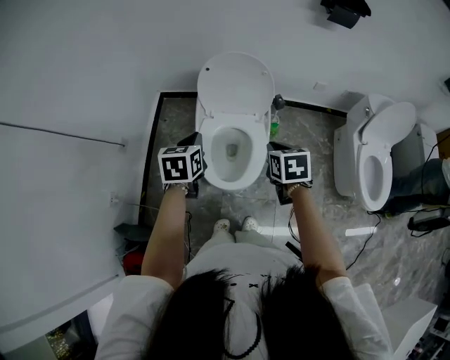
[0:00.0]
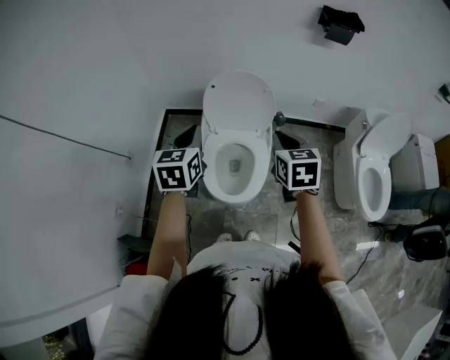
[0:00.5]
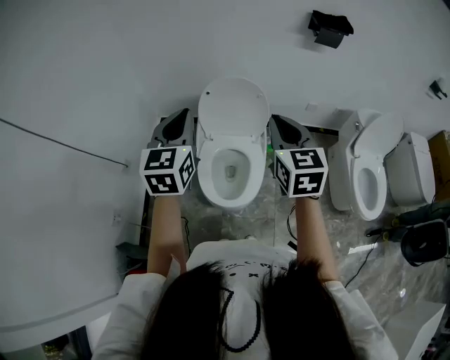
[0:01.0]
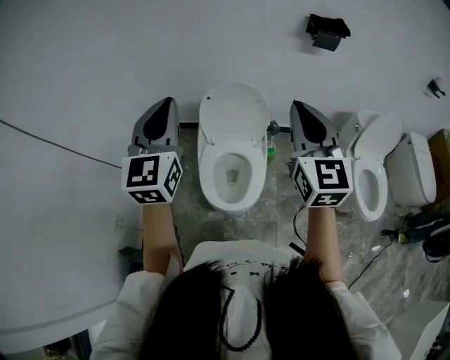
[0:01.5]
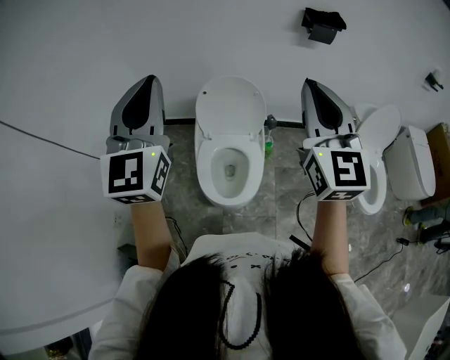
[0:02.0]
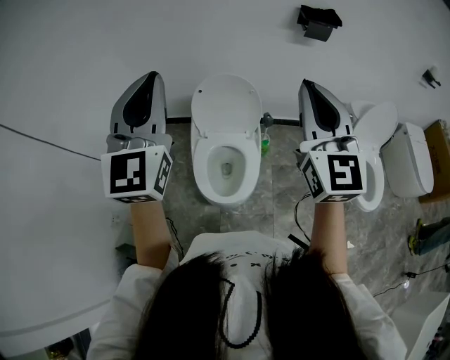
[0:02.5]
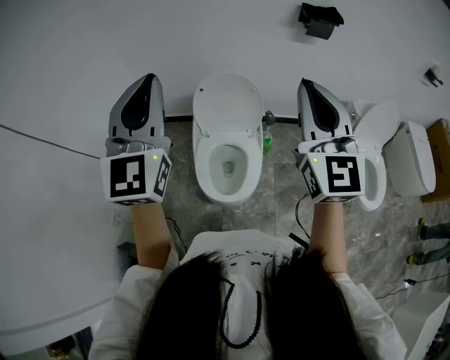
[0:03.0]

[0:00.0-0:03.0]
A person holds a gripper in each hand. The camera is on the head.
0:00.0 to 0:01.5: Both grippers move upward, some 30 cm. The right gripper angles its fingers upward, by roughly 50 degrees. Meanwhile the left gripper points its fingers about 50 degrees further upward.
0:01.5 to 0:03.0: The grippers both shift upward by some 5 cm.

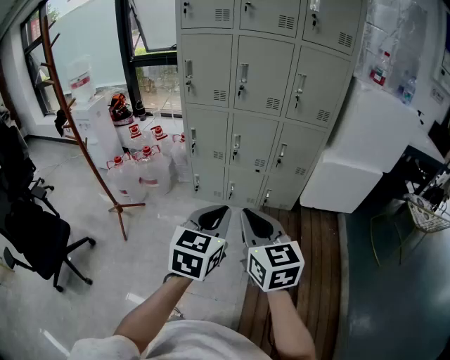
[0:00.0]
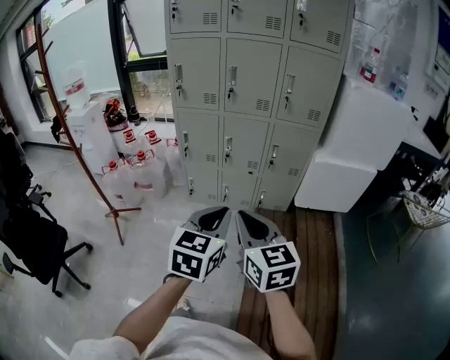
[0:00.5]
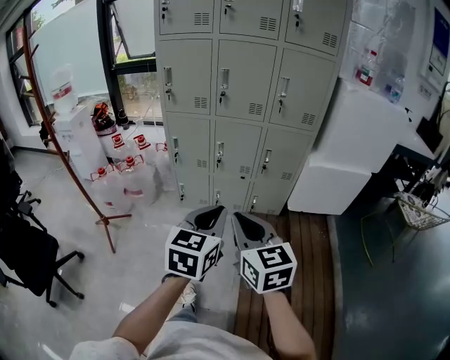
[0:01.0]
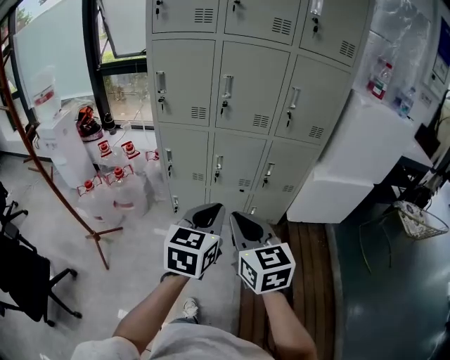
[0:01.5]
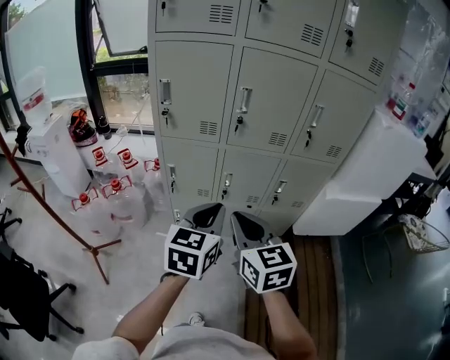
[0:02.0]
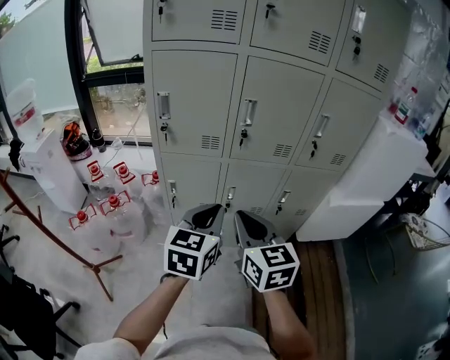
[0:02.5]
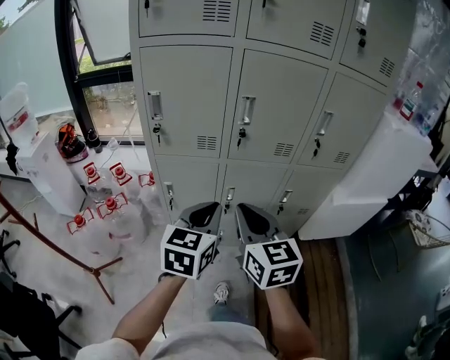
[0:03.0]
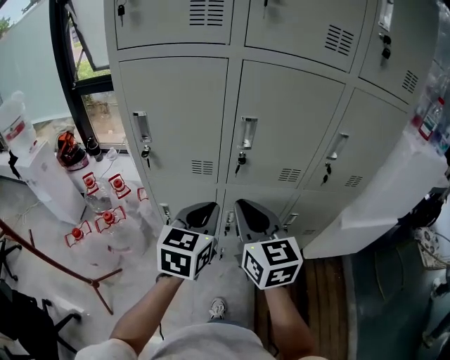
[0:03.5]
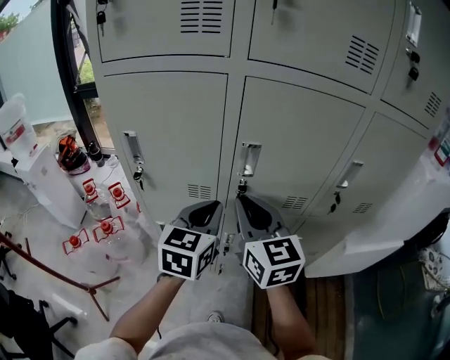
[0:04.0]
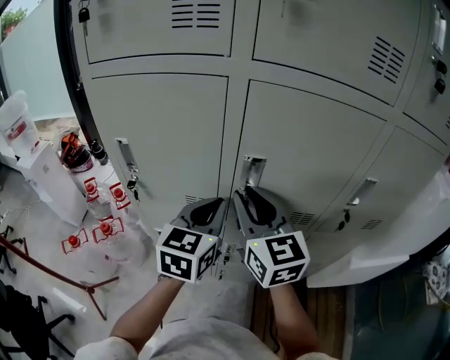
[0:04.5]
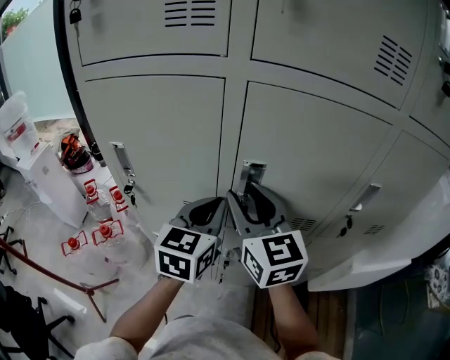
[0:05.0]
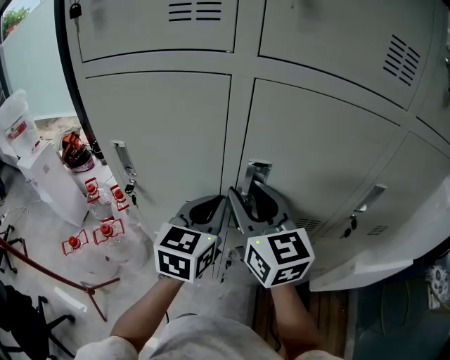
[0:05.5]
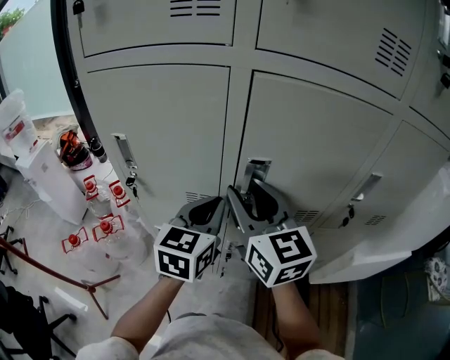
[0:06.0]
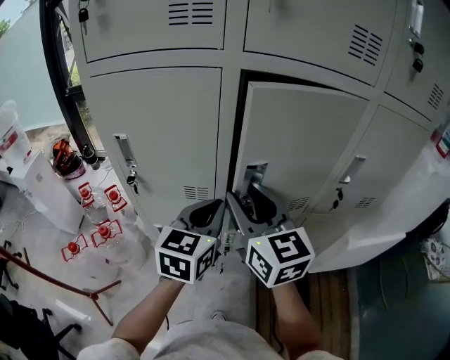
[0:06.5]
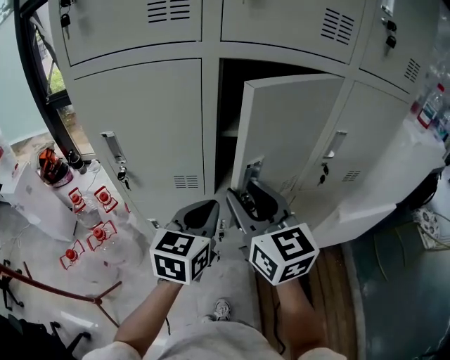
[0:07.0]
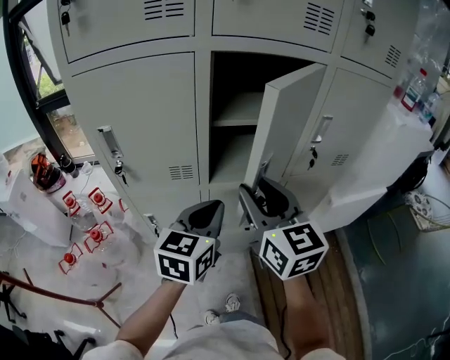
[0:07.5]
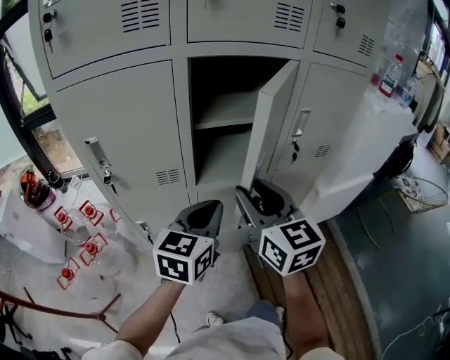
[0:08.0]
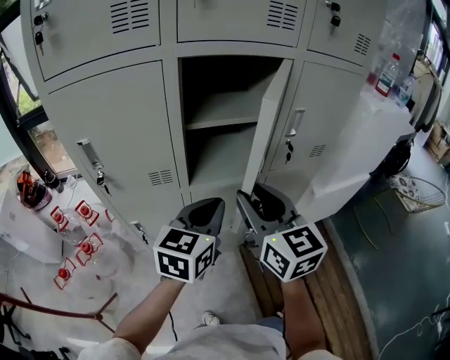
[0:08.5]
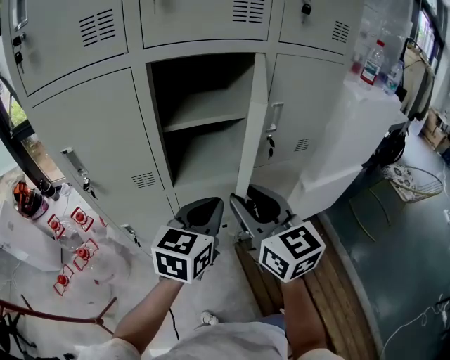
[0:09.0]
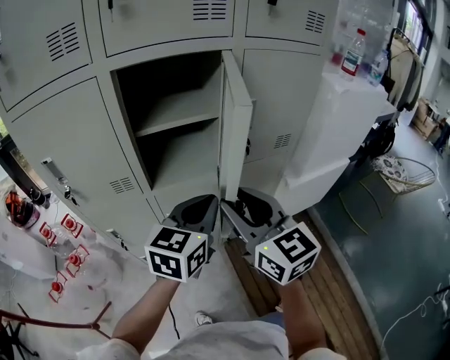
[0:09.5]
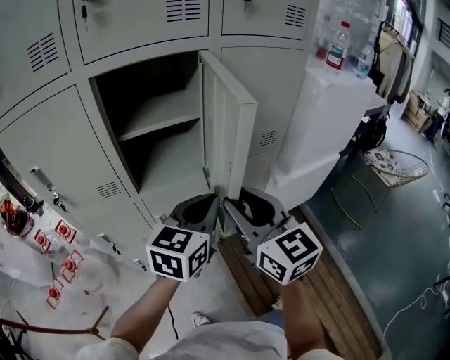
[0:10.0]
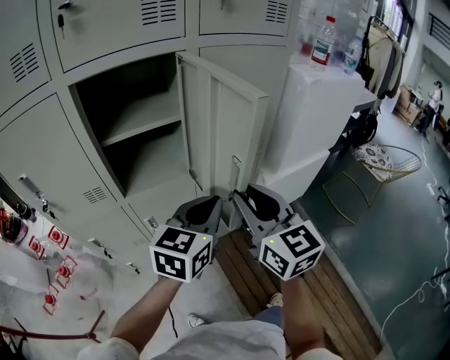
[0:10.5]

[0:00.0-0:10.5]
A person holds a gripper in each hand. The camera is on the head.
0:00.0 to 0:02.0: The two grippers go about 30 cm forward.
0:02.0 to 0:04.0: The two grippers go roughly 30 cm forward.
0:04.0 to 0:06.5: The right gripper travels forward and back again, approximately 10 cm each way, and opens up. The left gripper reaches approximately 10 cm forward, then returns.
0:06.5 to 0:08.5: The right gripper travels to the right and backward by about 15 cm. The left gripper goes roughly 10 cm backward and to the right.
0:08.5 to 0:10.5: Both grippers travel together to the right, approximately 20 cm.

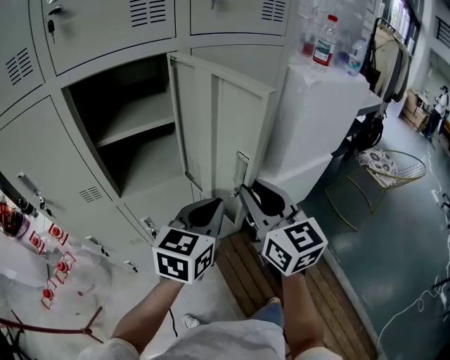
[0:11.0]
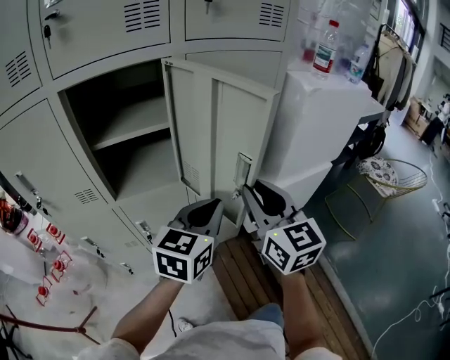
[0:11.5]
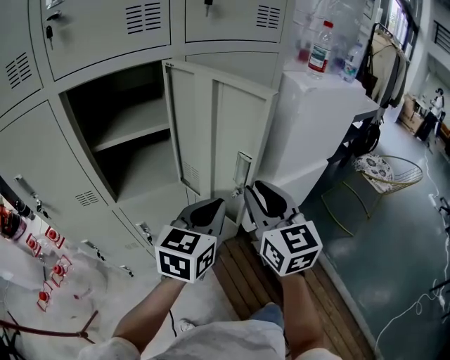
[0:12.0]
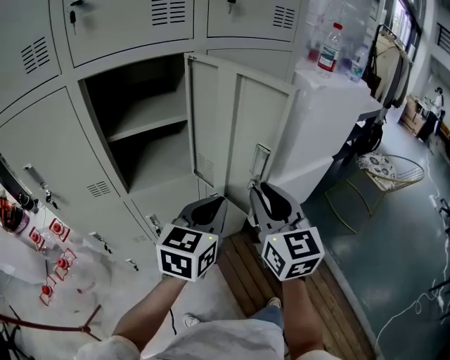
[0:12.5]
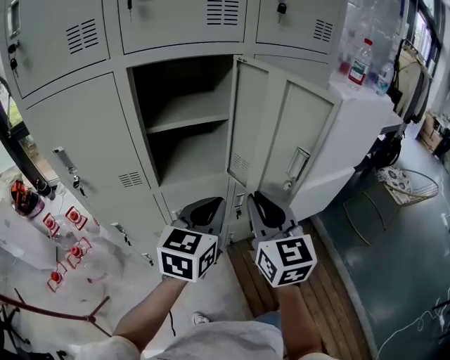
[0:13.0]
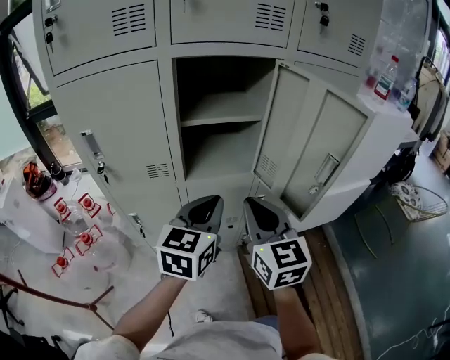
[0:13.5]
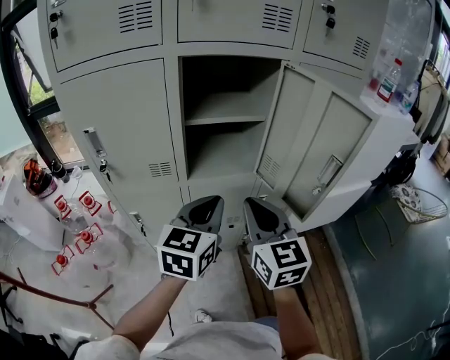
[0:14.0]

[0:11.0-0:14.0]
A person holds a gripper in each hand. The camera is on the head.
0:11.0 to 0:12.5: There are only small adjustments of the grippers.
0:12.5 to 0:14.0: The two grippers go about 20 cm to the left.

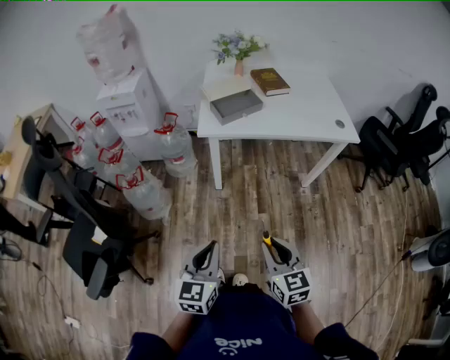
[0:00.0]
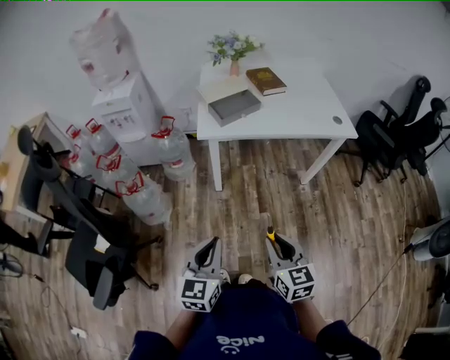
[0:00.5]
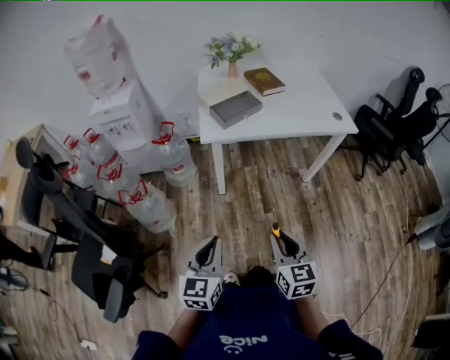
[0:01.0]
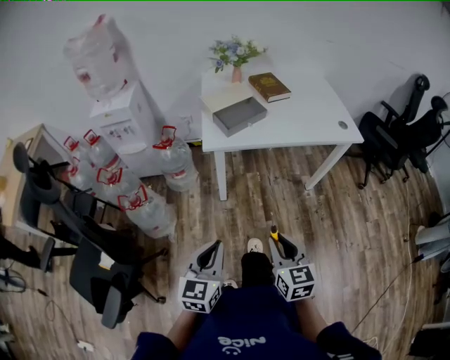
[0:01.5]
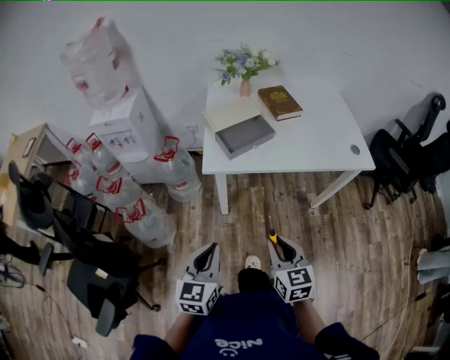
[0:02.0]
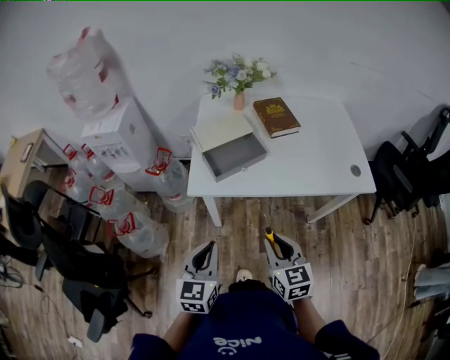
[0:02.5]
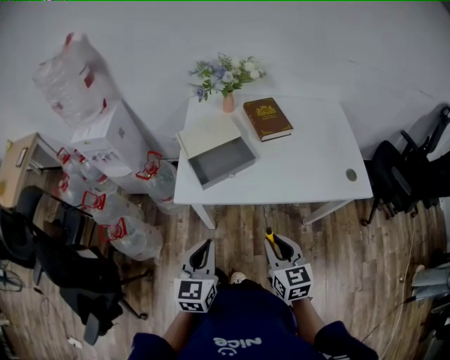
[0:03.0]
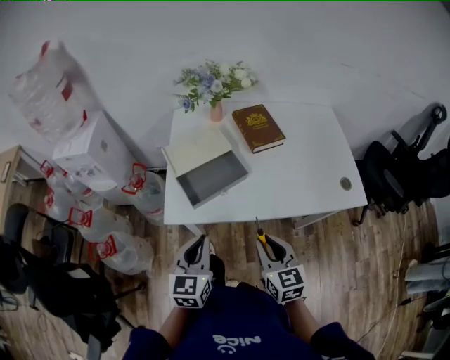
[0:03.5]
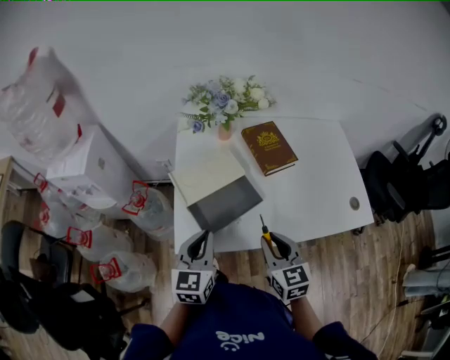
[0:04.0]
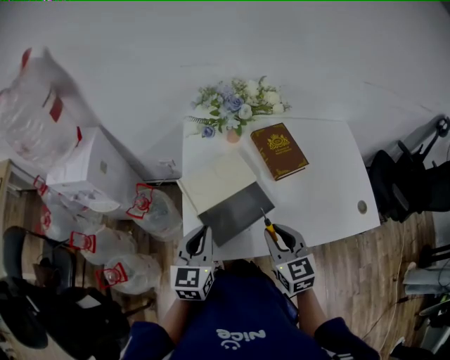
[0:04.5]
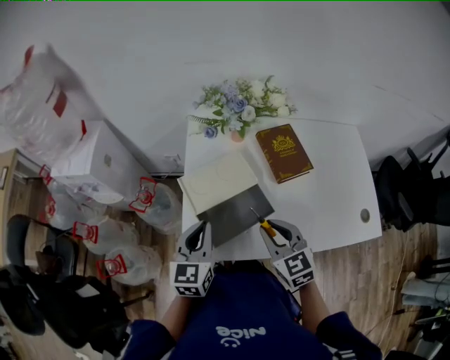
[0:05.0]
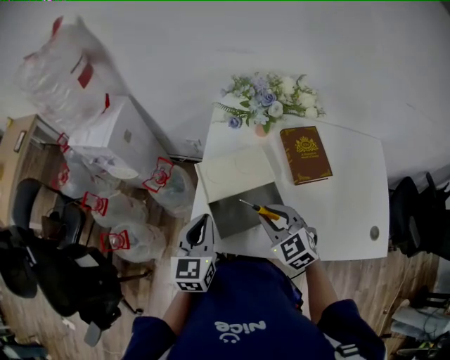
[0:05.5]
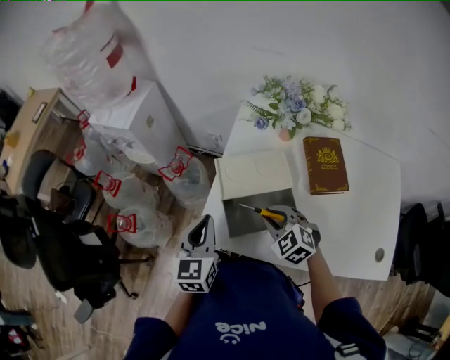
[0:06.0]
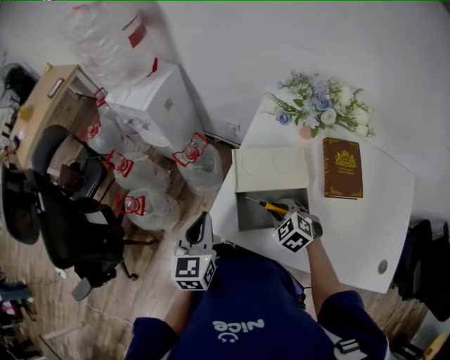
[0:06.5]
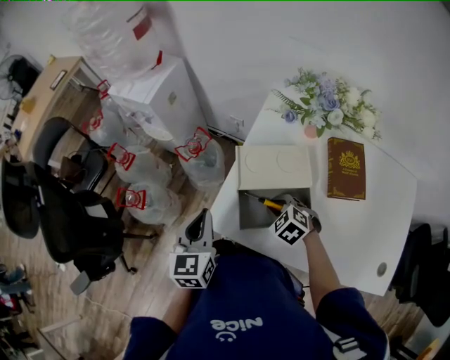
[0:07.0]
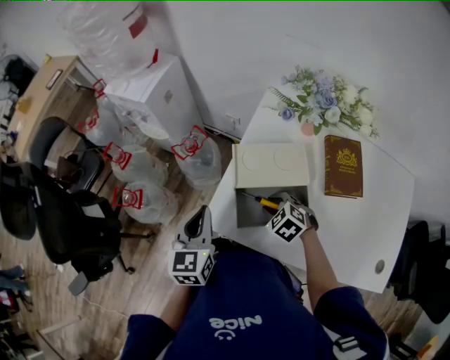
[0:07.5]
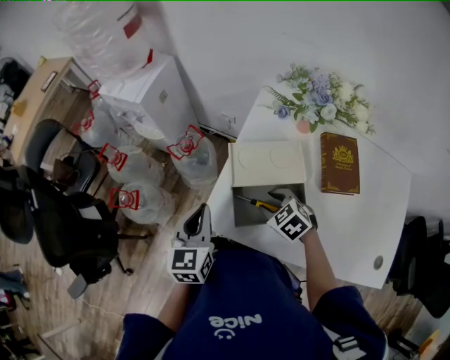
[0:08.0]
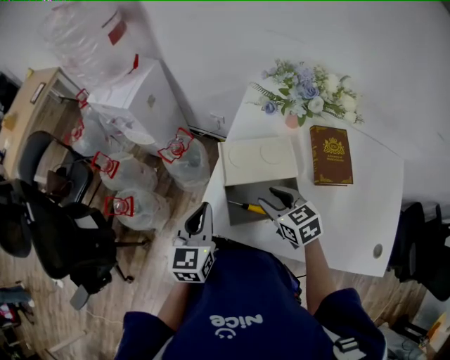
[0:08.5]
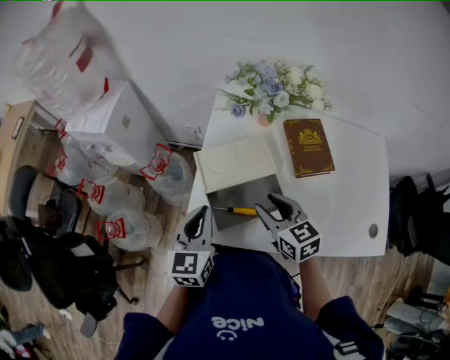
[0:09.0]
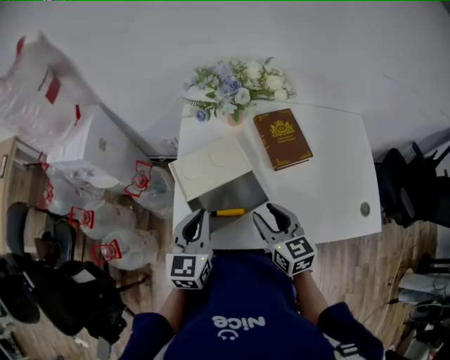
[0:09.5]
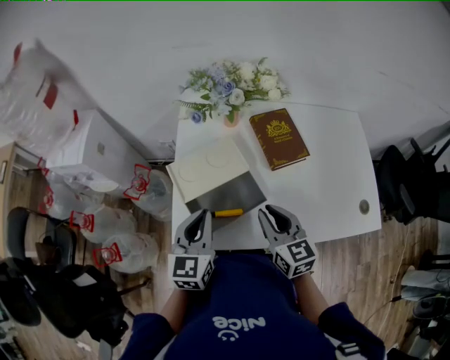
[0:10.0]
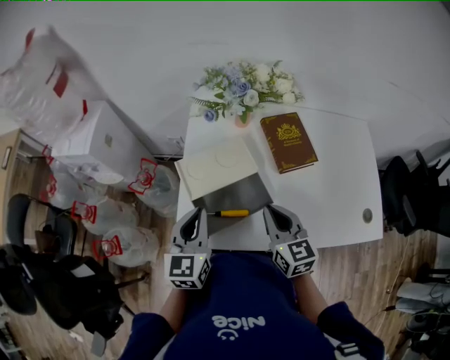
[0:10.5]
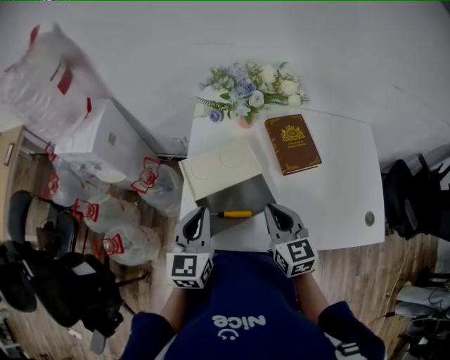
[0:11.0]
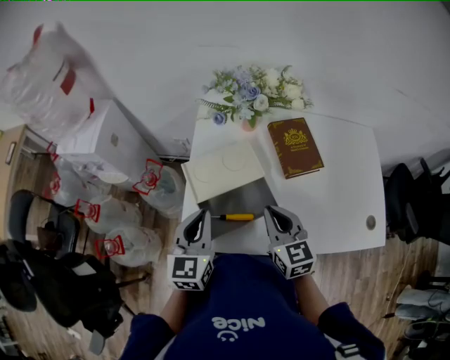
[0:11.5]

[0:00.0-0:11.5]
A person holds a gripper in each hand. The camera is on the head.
0:00.0 to 0:02.0: The two grippers go approximately 20 cm forward.
0:02.0 to 0:04.0: Both grippers move forward, roughly 35 cm.
0:04.0 to 0:06.0: The right gripper changes place by some 15 cm, and swivels some 60 degrees; the left gripper shifts by approximately 10 cm, and changes its angle by some 30 degrees.
0:06.0 to 0:07.5: The right gripper goes roughly 10 cm downward.
0:07.5 to 0:09.5: The right gripper heads upward, covering about 15 cm, and angles its fingers upward, by some 40 degrees, while the left gripper shifts by some 15 cm, and rotates roughly 30 degrees.
0:09.5 to 0:11.5: The right gripper closes its fingers.
